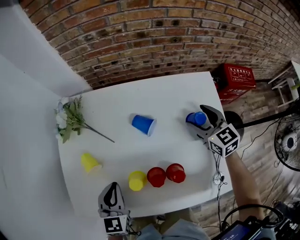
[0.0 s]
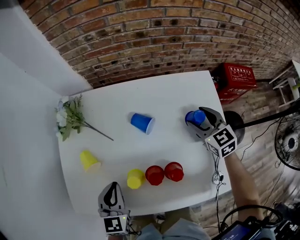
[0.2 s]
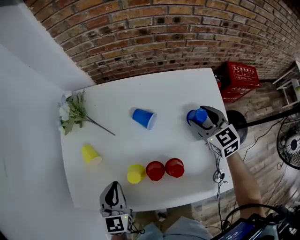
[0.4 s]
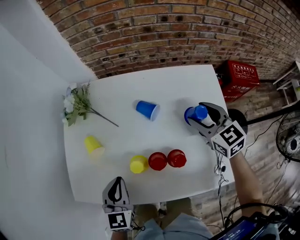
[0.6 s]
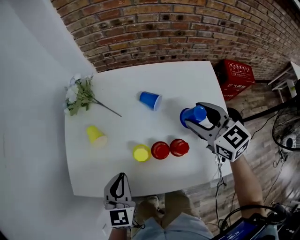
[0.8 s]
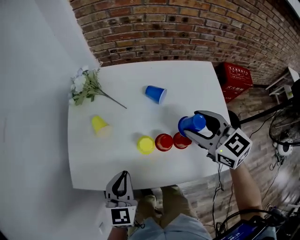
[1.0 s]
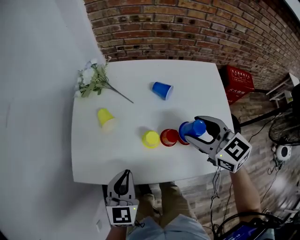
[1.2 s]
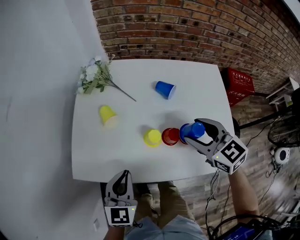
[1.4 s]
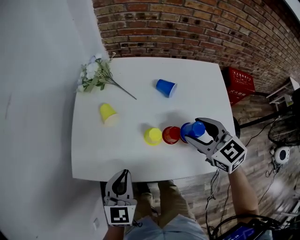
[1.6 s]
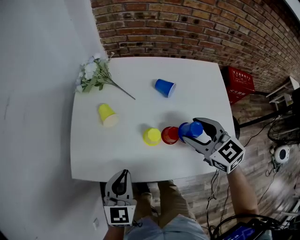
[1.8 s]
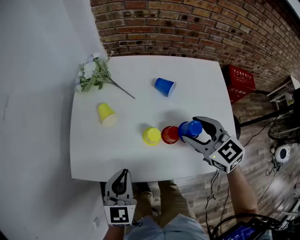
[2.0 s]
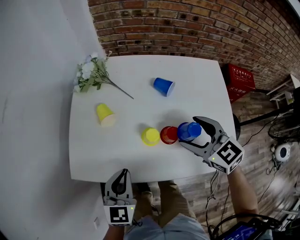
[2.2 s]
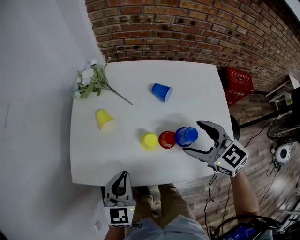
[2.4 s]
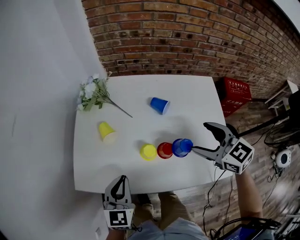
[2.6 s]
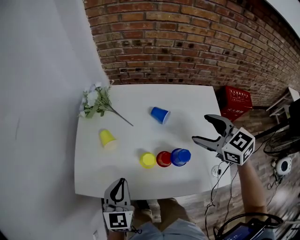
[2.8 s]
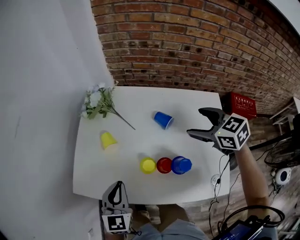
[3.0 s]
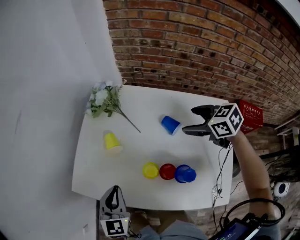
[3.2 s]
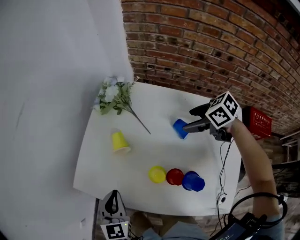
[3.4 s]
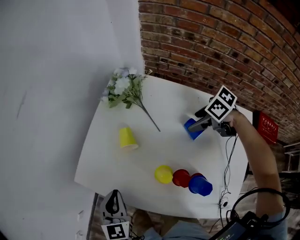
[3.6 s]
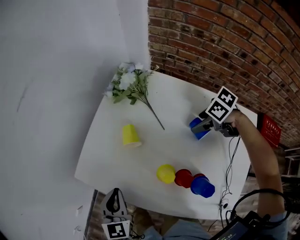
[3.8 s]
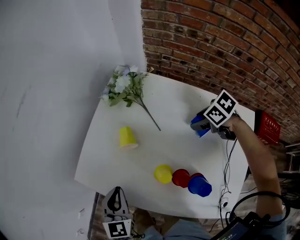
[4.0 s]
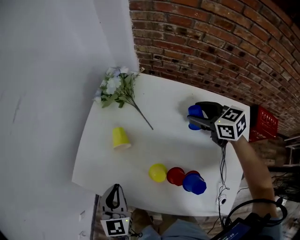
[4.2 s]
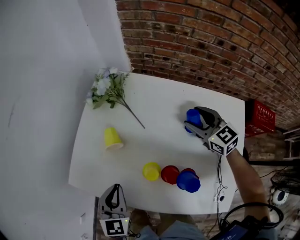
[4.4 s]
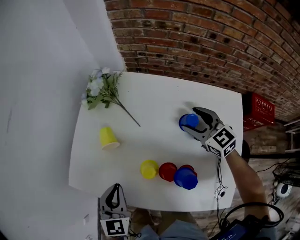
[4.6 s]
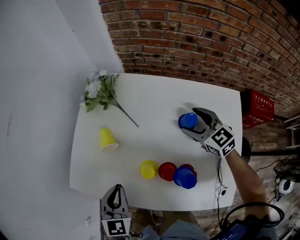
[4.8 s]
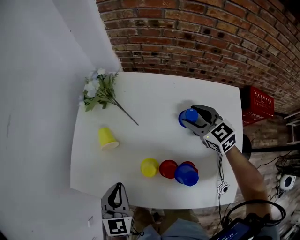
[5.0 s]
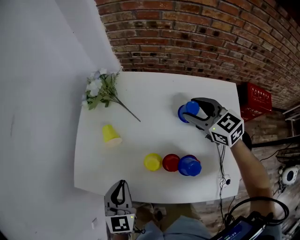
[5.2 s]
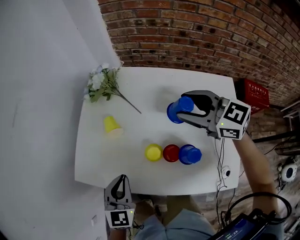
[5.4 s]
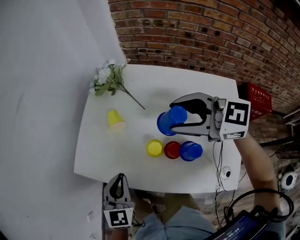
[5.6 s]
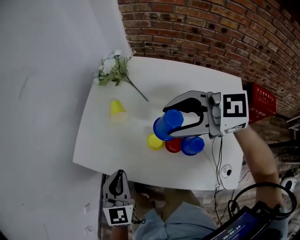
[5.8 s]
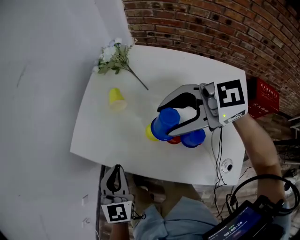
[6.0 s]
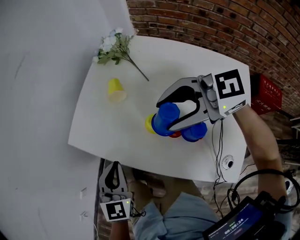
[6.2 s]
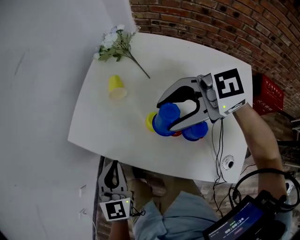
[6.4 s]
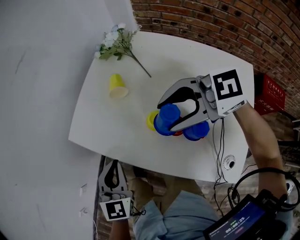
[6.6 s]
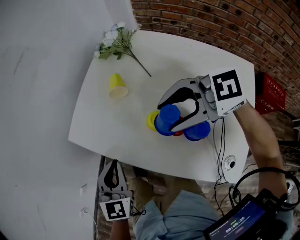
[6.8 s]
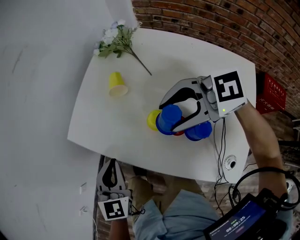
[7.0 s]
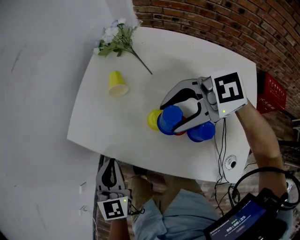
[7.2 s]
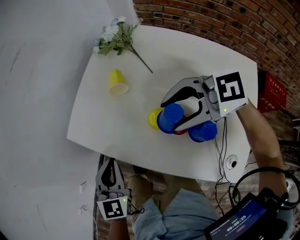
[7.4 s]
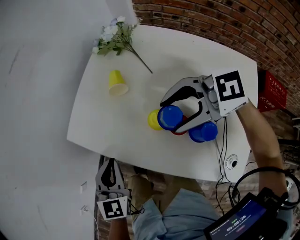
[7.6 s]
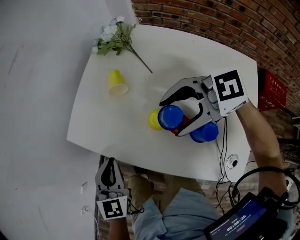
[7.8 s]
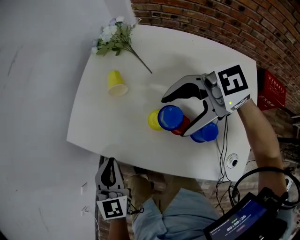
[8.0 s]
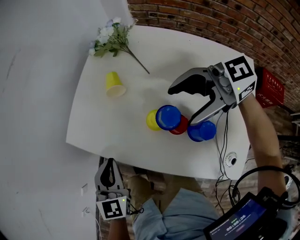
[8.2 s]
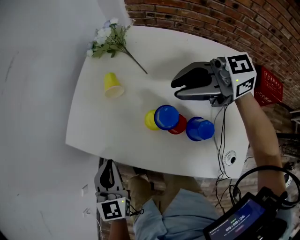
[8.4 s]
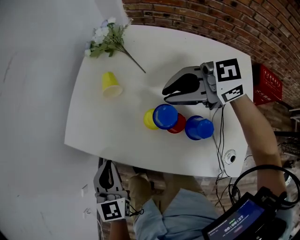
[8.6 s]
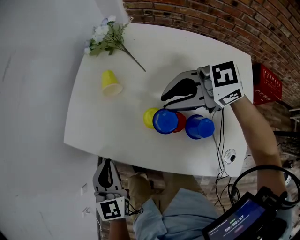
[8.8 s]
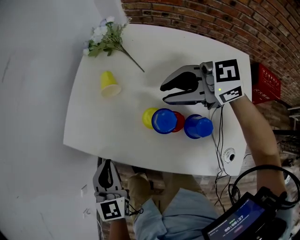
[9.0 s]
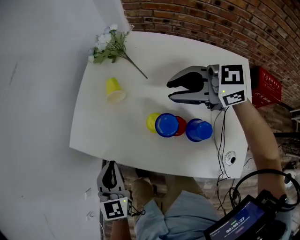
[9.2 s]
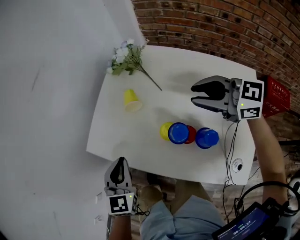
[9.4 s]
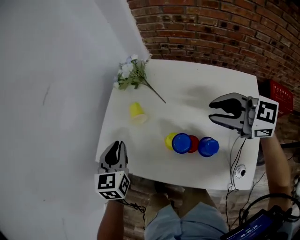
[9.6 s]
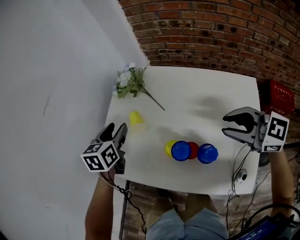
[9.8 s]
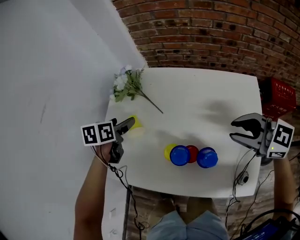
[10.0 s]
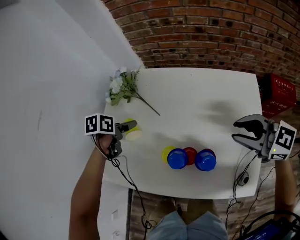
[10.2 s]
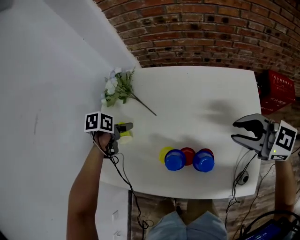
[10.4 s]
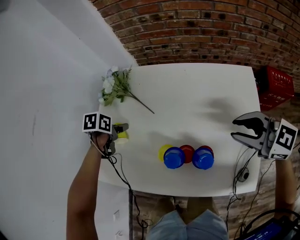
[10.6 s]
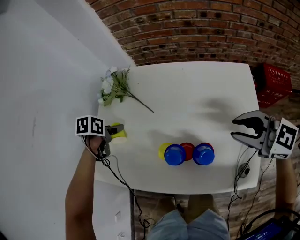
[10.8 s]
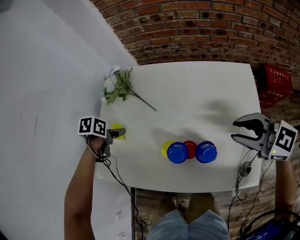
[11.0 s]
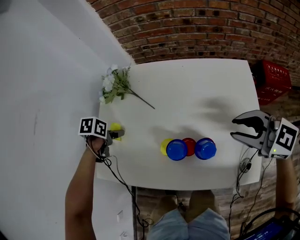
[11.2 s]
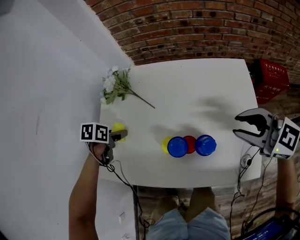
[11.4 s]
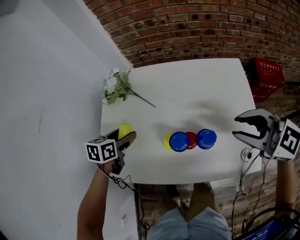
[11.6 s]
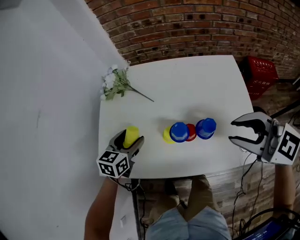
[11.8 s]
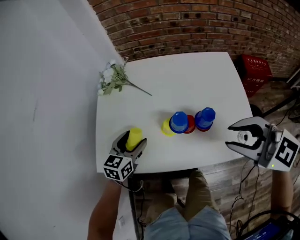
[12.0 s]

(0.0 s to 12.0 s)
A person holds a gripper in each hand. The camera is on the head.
0.0 s - 1.6 s: The right gripper travels to the left, backward and upward by approximately 25 cm, while the left gripper travels backward and to the left by some 15 cm.
1.6 s - 3.0 s: The right gripper travels forward and to the right by approximately 15 cm. Meanwhile the left gripper goes some 5 cm forward.
3.0 s - 4.4 s: The right gripper moves some 15 cm.
4.4 s - 6.0 s: The left gripper changes place by about 10 cm. The right gripper ends up about 30 cm from where it was, and rotates about 60 degrees.
6.0 s - 7.6 s: The right gripper travels downward by roughly 5 cm.
7.6 s - 9.0 s: The right gripper moves to the right, about 5 cm, and closes.
9.0 s - 10.4 s: The right gripper changes place by roughly 20 cm, and turns by about 30 degrees, while the left gripper changes place by about 30 cm, tips its fingers downward by about 40 degrees, and opens up.
10.4 s - 12.0 s: The left gripper travels backward by about 15 cm, and tips its fingers upward by about 40 degrees. Meanwhile the right gripper goes roughly 20 cm backward and to the left.

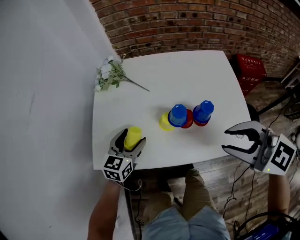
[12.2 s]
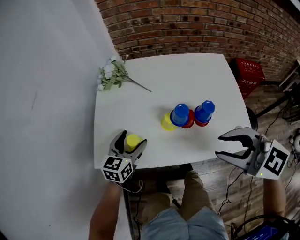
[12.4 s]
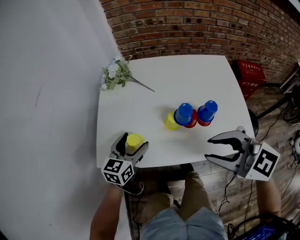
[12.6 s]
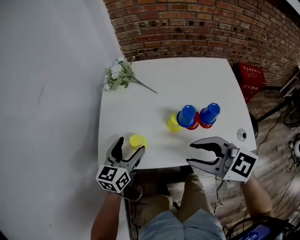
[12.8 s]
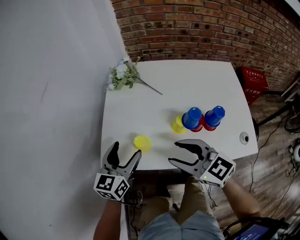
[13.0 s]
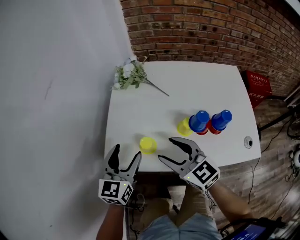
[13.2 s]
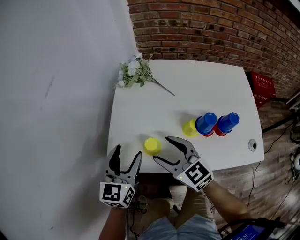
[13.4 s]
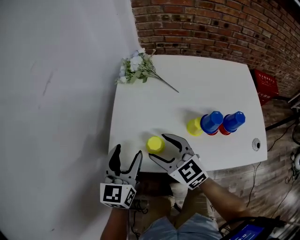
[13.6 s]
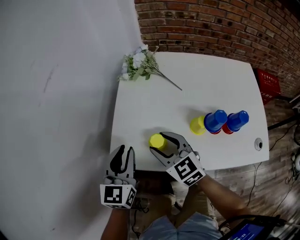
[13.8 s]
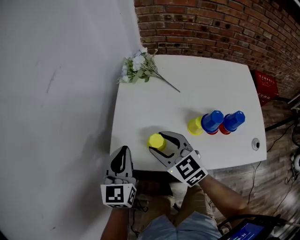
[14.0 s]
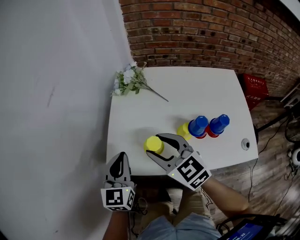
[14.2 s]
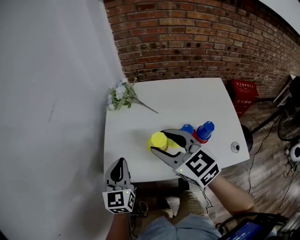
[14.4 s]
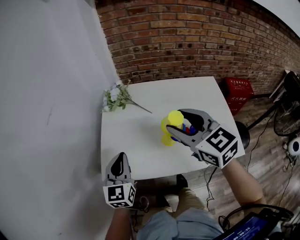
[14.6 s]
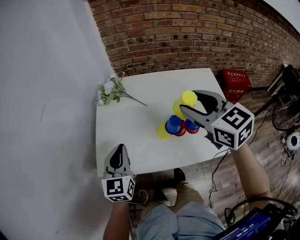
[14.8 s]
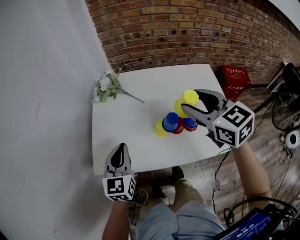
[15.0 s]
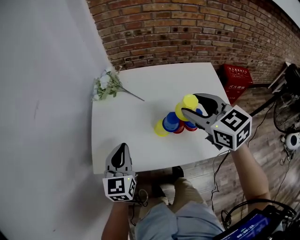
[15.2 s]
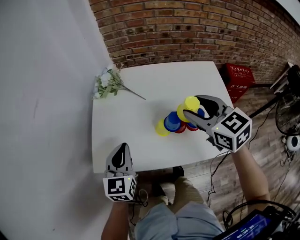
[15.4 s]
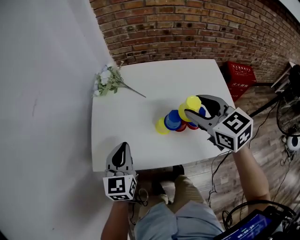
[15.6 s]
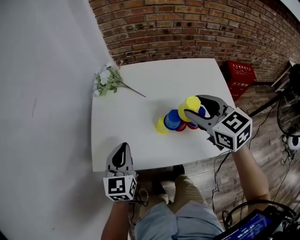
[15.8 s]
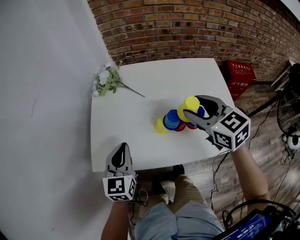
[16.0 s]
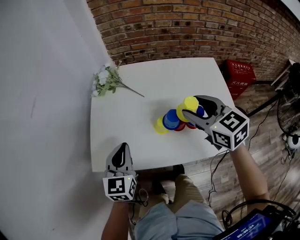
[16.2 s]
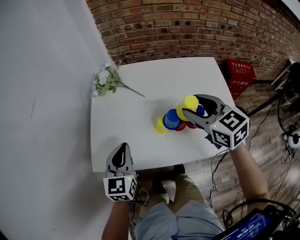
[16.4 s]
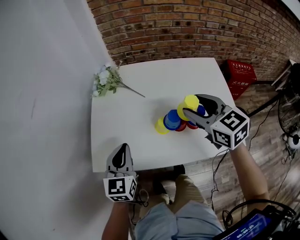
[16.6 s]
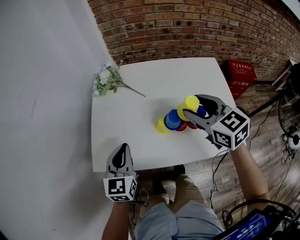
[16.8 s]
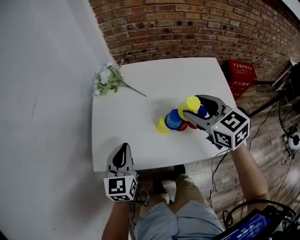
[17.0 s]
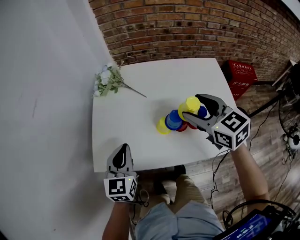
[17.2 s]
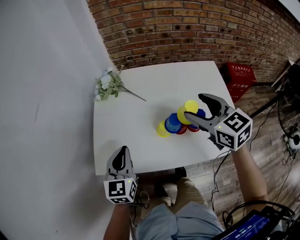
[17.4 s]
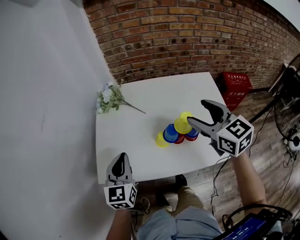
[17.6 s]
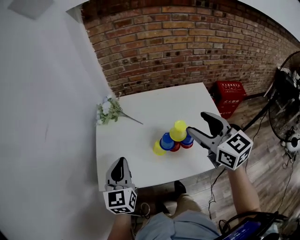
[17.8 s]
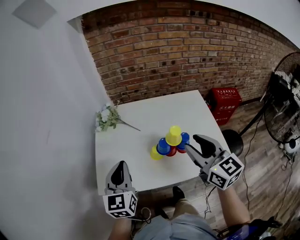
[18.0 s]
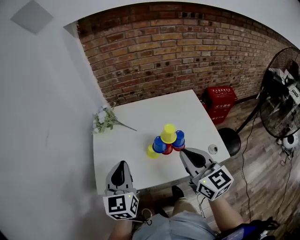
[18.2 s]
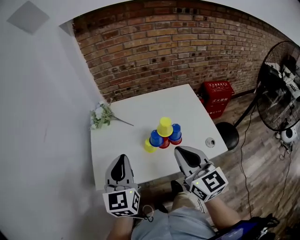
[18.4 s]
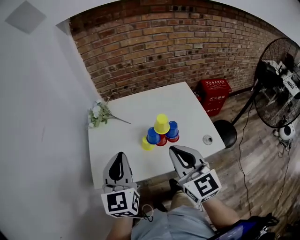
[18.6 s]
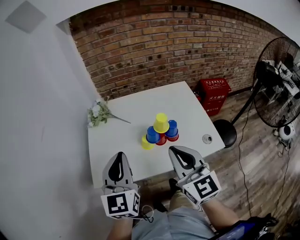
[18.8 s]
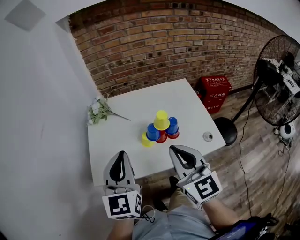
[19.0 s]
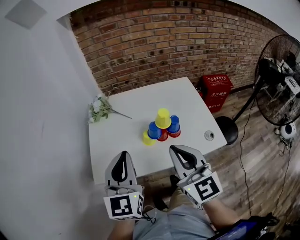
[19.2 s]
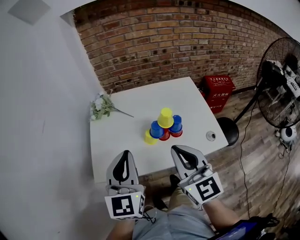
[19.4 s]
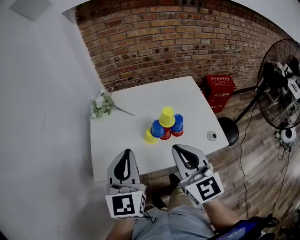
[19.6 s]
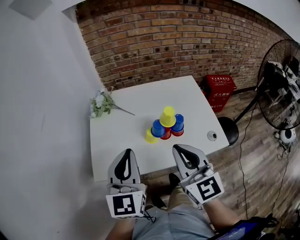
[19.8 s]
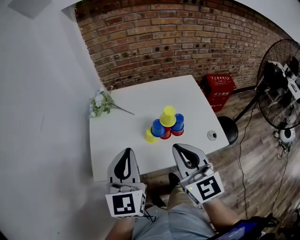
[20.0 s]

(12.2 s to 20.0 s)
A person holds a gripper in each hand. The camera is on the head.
12.2 s - 13.8 s: The right gripper travels to the left, downward and forward by approximately 35 cm; the left gripper goes approximately 15 cm to the left and upward, turns by roughly 20 degrees, and closes up.
13.8 s - 15.4 s: The right gripper shifts some 30 cm to the right and upward. Meanwhile the left gripper heads to the right, covering approximately 10 cm.
15.4 s - 16.8 s: There are only small adjustments of the grippers.
16.8 s - 18.4 s: The left gripper shifts roughly 15 cm upward. The right gripper heads backward and upward, covering about 15 cm, rotates approximately 30 degrees, and closes its fingers.
18.4 s - 20.0 s: The grippers make only small movements.

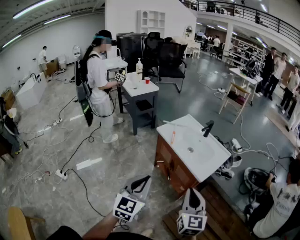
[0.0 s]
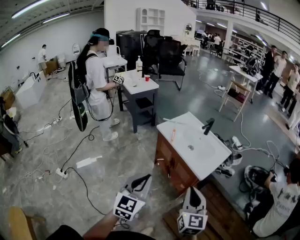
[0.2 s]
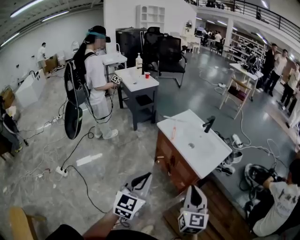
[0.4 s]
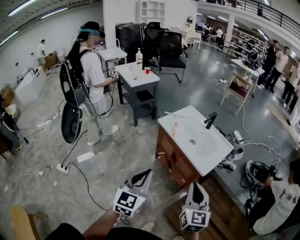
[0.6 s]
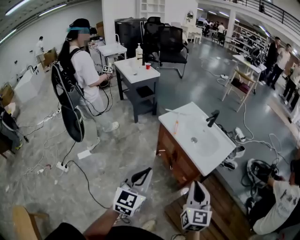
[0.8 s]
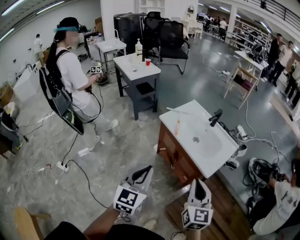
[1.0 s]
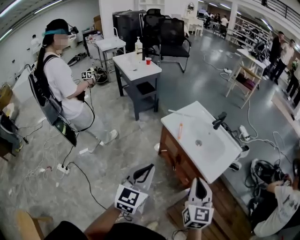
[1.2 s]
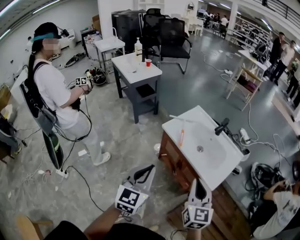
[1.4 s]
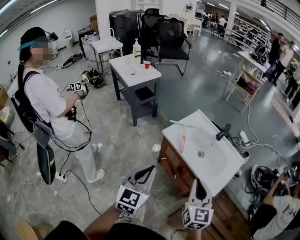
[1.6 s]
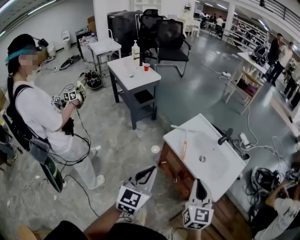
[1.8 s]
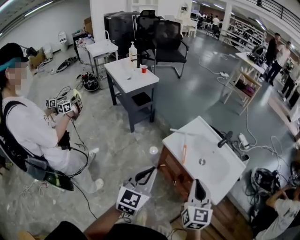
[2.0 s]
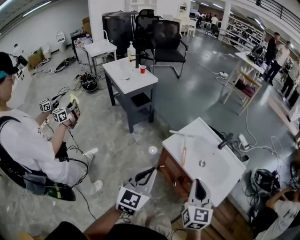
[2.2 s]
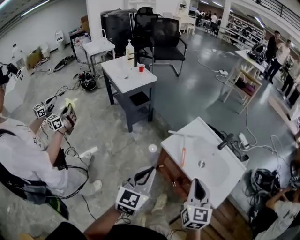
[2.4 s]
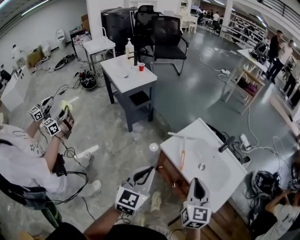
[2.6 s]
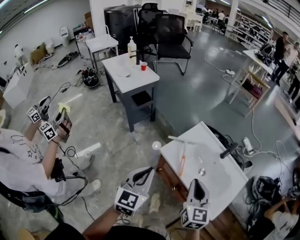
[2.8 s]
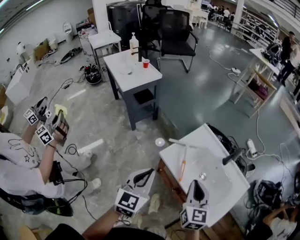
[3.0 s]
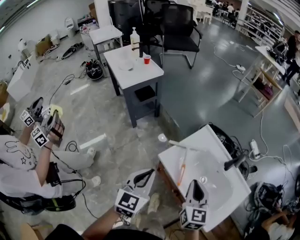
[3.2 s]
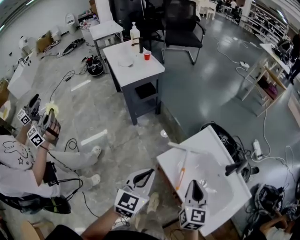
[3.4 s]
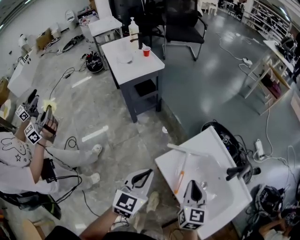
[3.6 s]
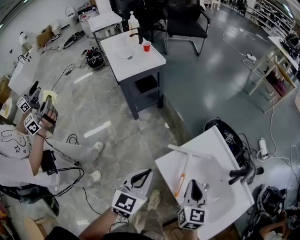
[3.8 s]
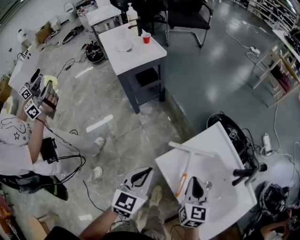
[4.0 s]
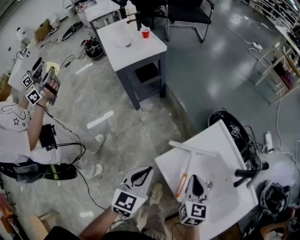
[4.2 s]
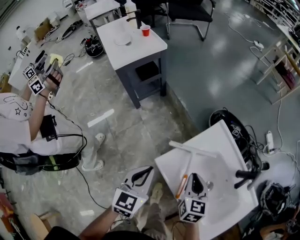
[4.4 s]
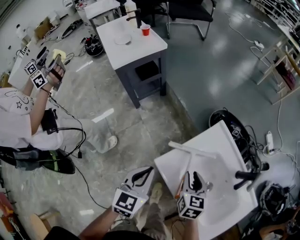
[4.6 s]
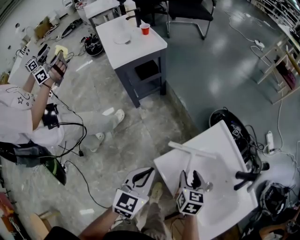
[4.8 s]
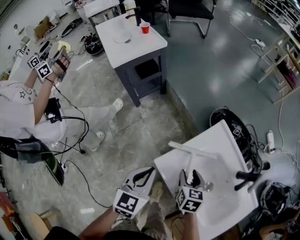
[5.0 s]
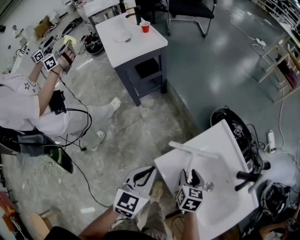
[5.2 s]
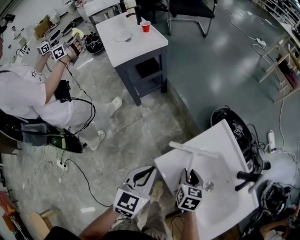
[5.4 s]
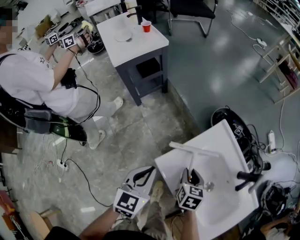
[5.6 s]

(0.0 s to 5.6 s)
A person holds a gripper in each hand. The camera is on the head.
0.0 s - 1.4 s: The grippers both shift forward and to the left by approximately 20 cm.
1.4 s - 2.8 s: Both grippers travel together forward, about 20 cm.
2.8 s - 4.2 s: Both grippers move forward and downward, approximately 25 cm.
4.2 s - 5.6 s: The right gripper is displaced downward by approximately 10 cm, and opens its fingers.
